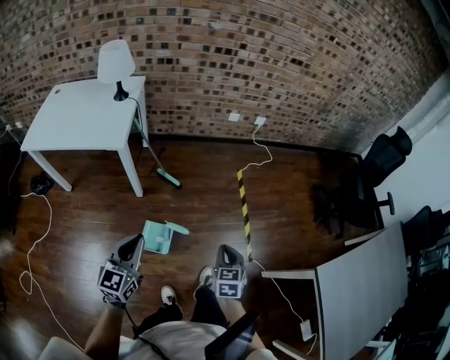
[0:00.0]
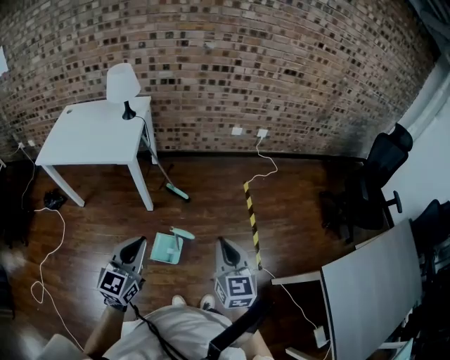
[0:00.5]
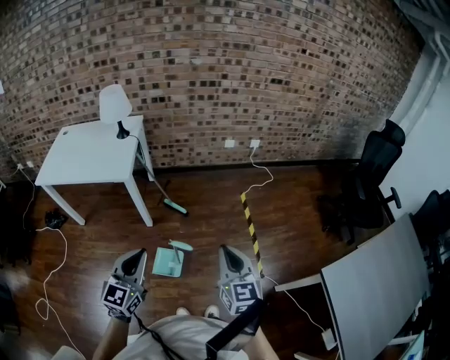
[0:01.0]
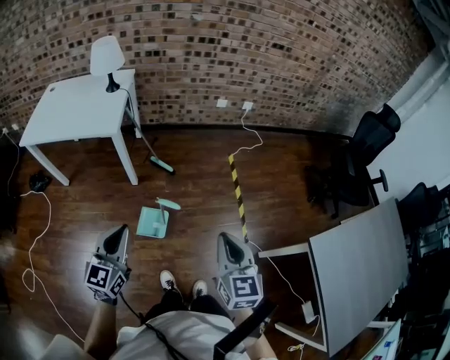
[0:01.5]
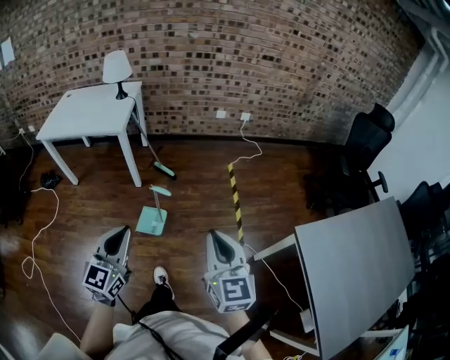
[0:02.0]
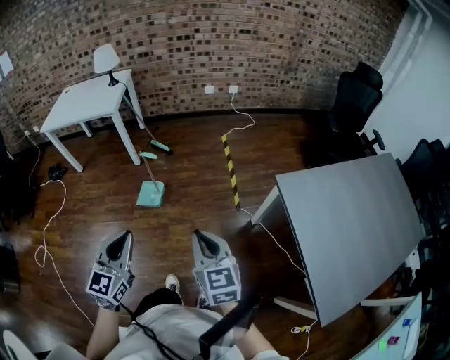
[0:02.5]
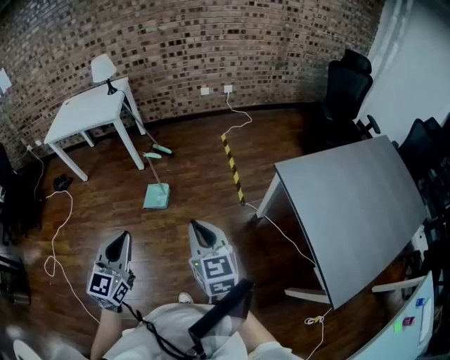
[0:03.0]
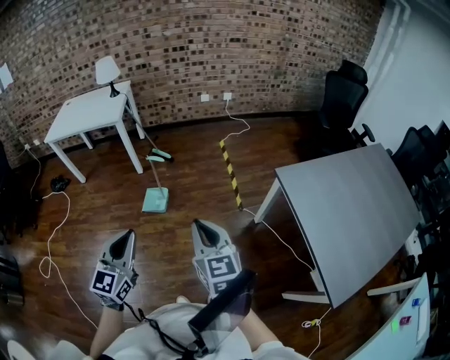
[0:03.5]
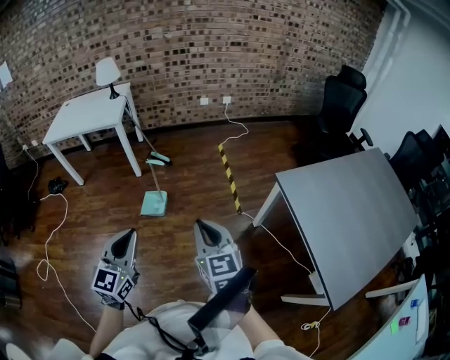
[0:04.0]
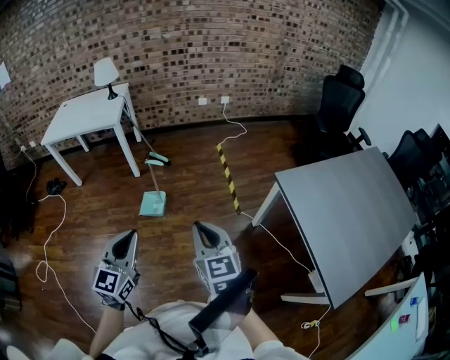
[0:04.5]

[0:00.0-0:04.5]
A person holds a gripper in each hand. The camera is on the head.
0:00.0 to 0:02.0: The right gripper shifts roughly 35 cm backward and upward, and tips its fingers upward by approximately 30 degrees, while the left gripper moves backward and to the right, approximately 25 cm.
0:02.0 to 0:04.5: Both grippers move backward, some 25 cm.

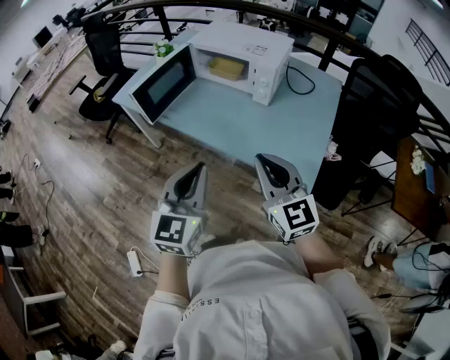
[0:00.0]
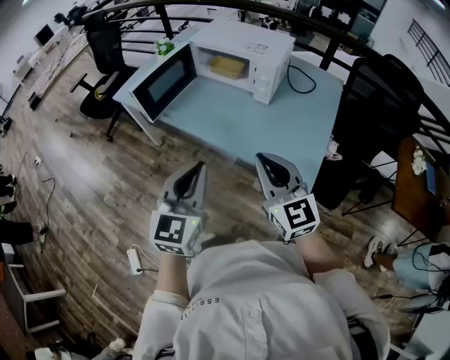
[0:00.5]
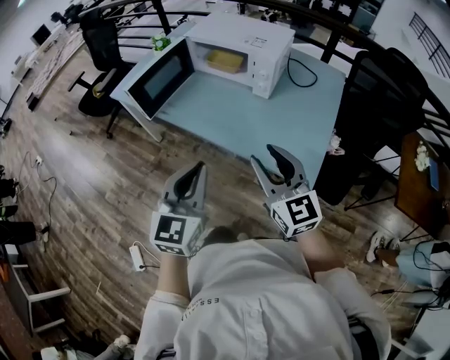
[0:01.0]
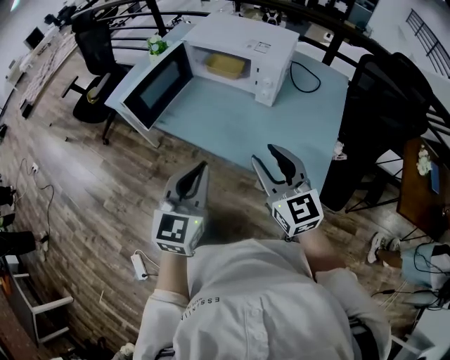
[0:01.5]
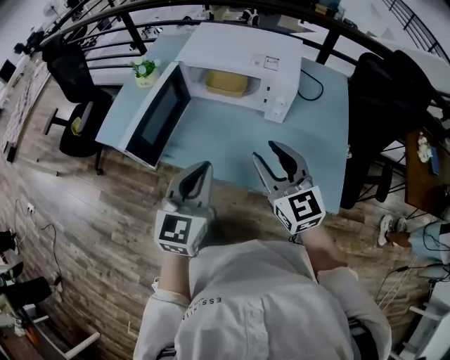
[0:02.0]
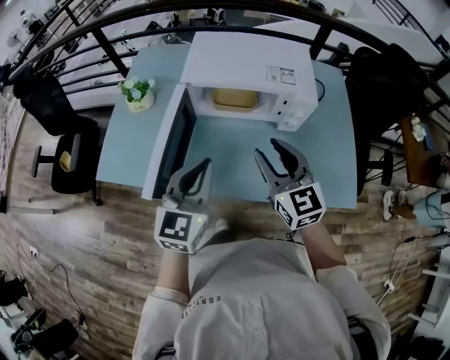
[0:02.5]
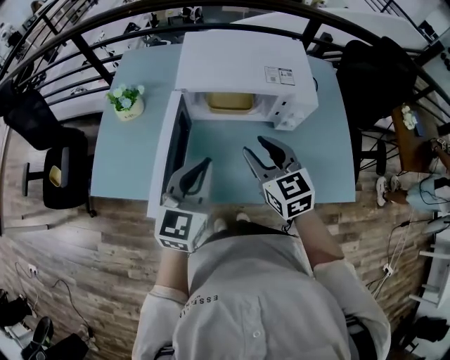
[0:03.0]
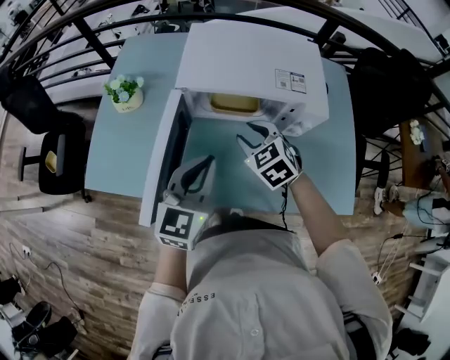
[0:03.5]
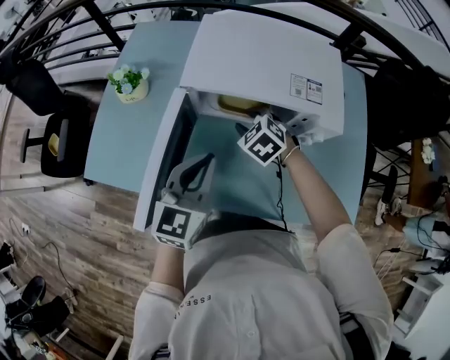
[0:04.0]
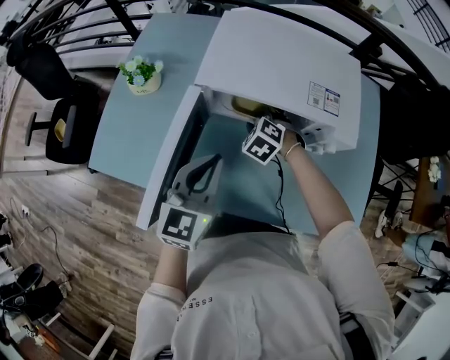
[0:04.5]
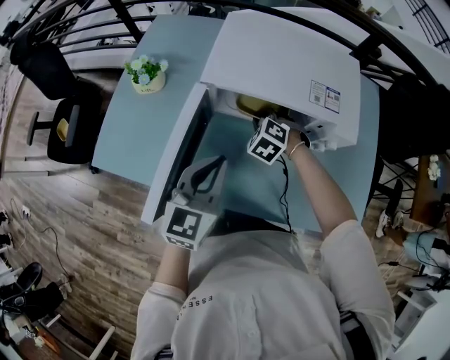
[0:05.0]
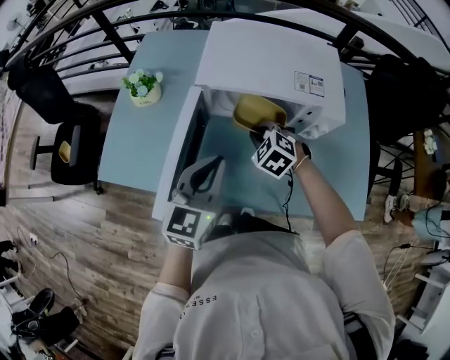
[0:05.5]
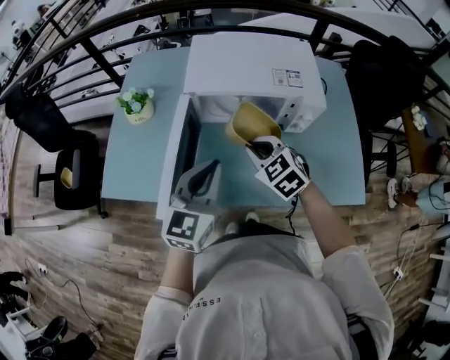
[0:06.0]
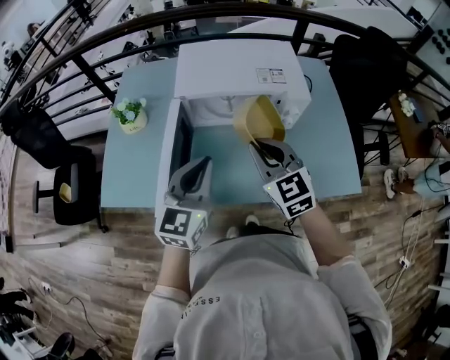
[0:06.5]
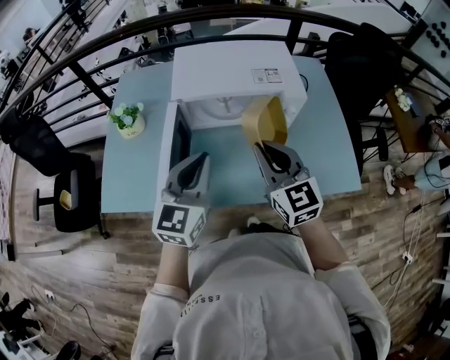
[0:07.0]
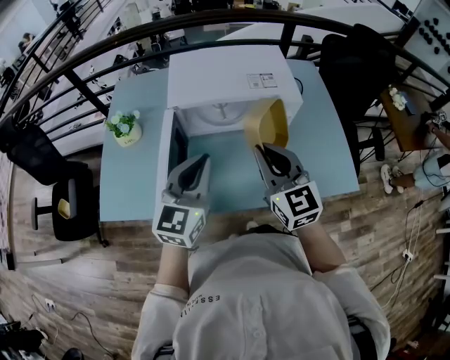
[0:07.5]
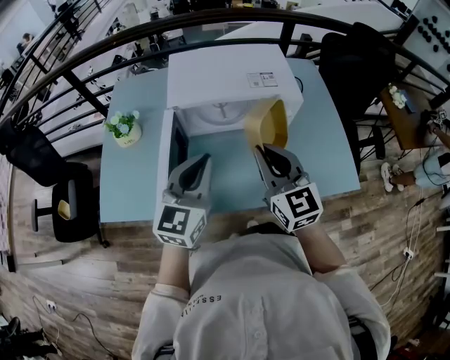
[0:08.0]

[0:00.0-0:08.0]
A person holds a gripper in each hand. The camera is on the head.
0:00.0 to 0:02.0: The two grippers go roughly 20 cm forward. The right gripper opens up.
0:02.0 to 0:04.0: The left gripper shifts approximately 25 cm forward and to the left. Meanwhile the right gripper is displaced forward, downward and to the left by approximately 35 cm, and points its fingers about 50 degrees further downward.
0:04.0 to 0:06.0: The right gripper moves backward and upward, roughly 15 cm, and closes its fingers. Meanwhile the left gripper goes roughly 5 cm backward.
0:06.0 to 0:08.0: The right gripper goes about 15 cm upward, to the right and backward, and tilts its fingers about 30 degrees upward.

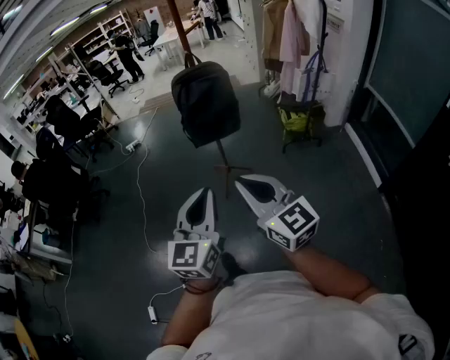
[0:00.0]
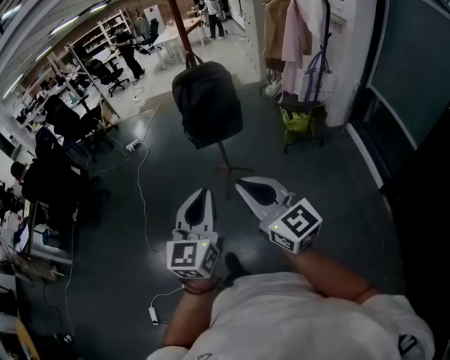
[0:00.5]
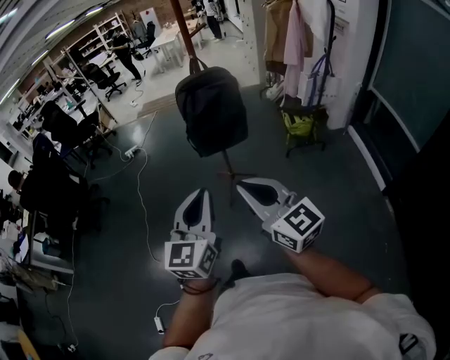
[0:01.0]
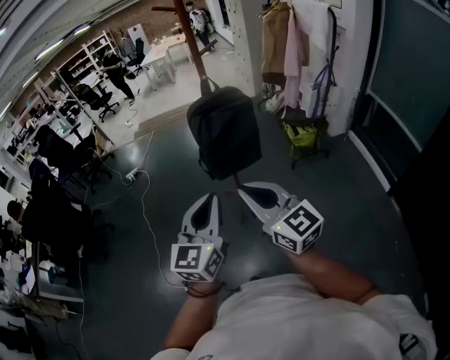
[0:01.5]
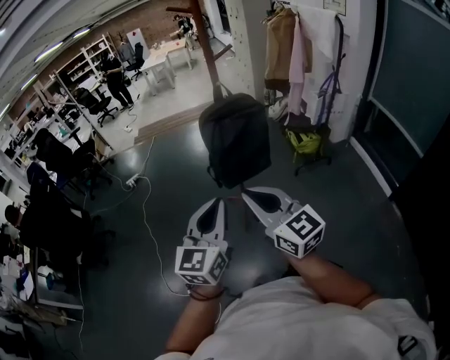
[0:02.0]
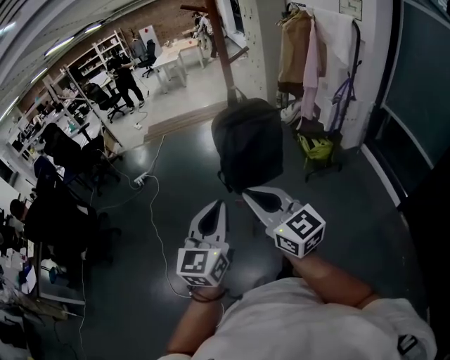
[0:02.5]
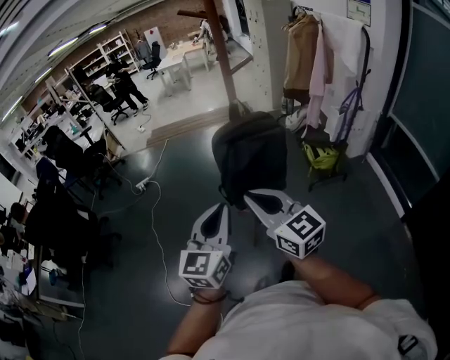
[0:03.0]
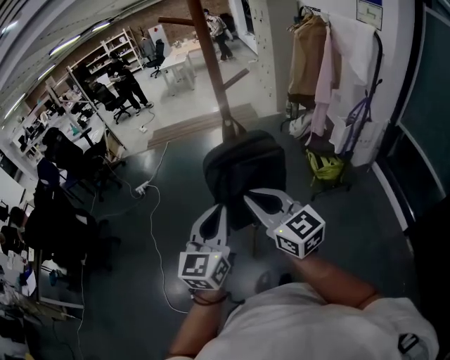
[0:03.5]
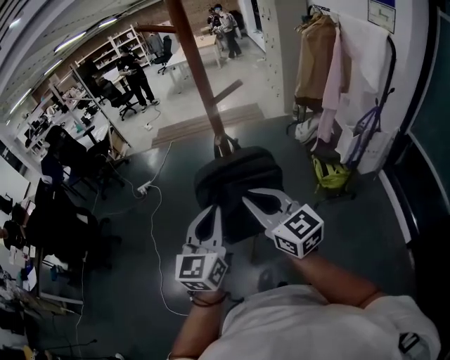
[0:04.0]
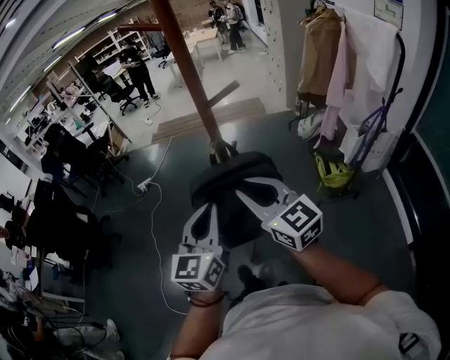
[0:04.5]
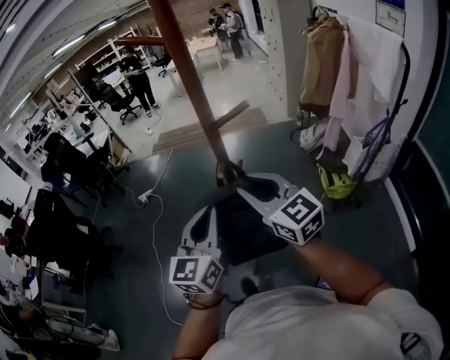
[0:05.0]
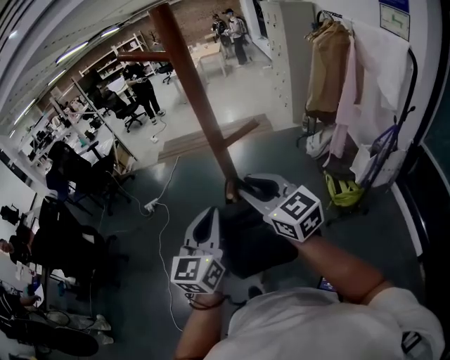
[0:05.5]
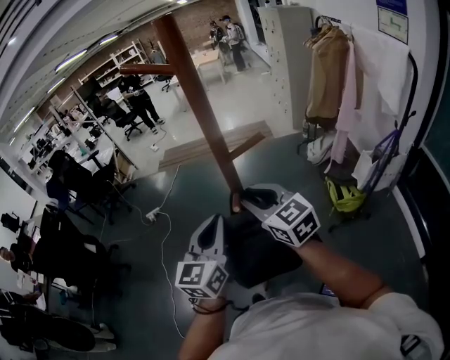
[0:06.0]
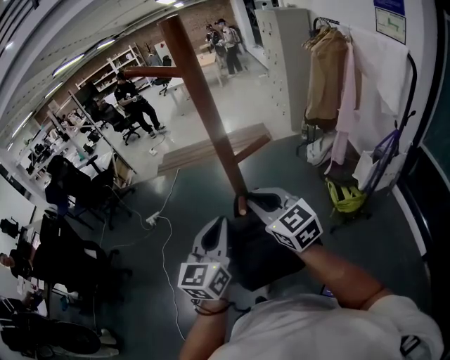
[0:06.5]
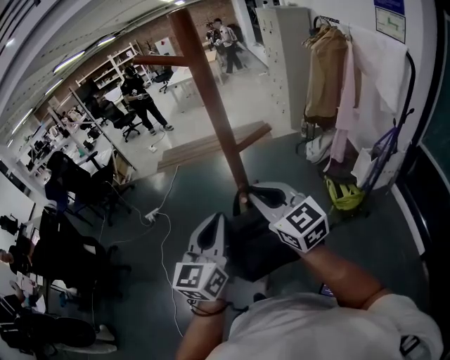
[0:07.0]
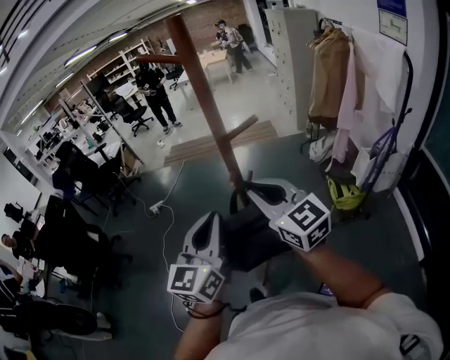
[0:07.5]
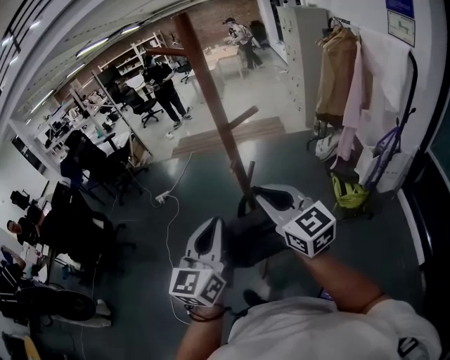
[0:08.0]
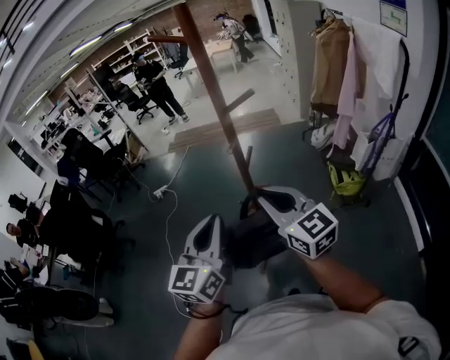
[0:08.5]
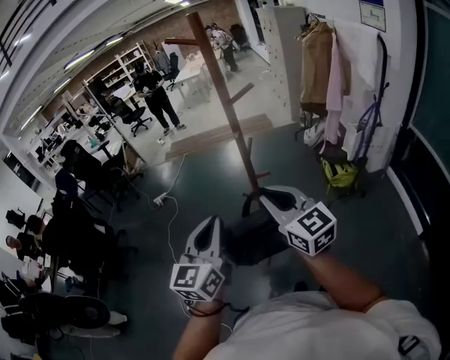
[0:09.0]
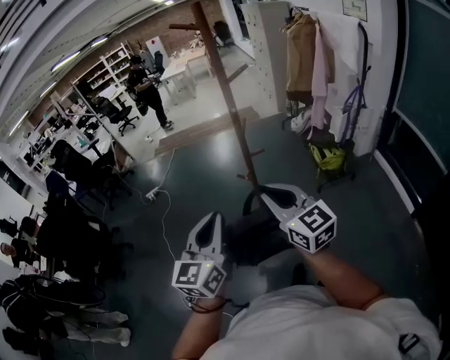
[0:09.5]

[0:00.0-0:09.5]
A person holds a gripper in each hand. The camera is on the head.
0:00.0 to 0:02.0: The two grippers go roughly 30 cm forward and to the left.
0:02.0 to 0:04.0: The grippers both shift forward and to the right by roughly 35 cm.
0:04.0 to 0:05.5: Both grippers travel together forward, some 15 cm.
0:05.5 to 0:07.5: The grippers both shift backward by roughly 5 cm.
0:07.5 to 0:09.5: The left gripper goes about 30 cm backward and to the left. The right gripper moves backward, about 30 cm.

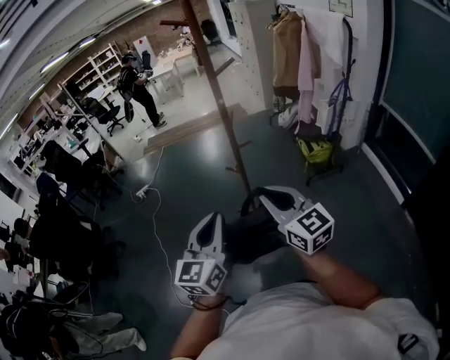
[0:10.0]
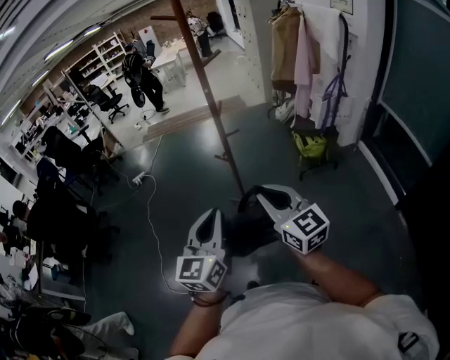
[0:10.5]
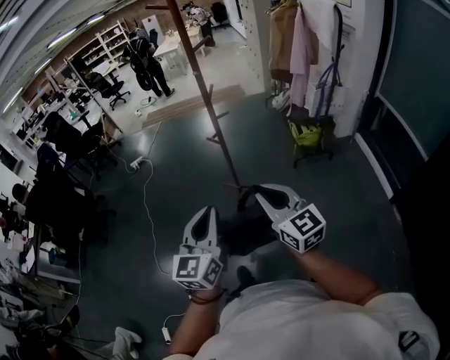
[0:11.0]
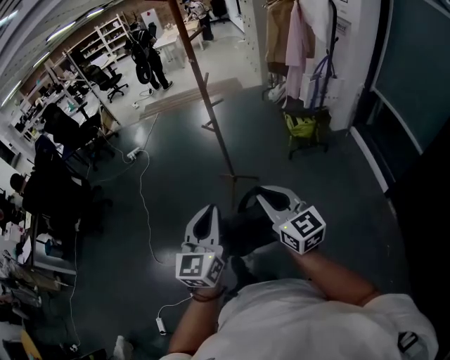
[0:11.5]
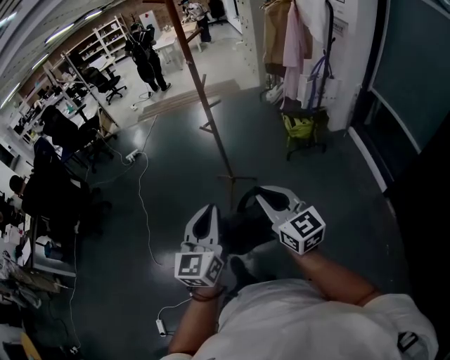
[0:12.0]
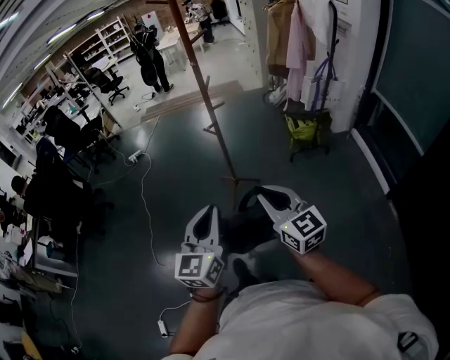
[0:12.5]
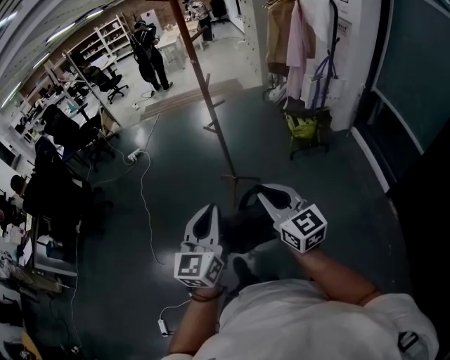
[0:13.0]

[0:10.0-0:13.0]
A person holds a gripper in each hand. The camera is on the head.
0:10.0 to 0:11.5: Both grippers move backward and to the right, approximately 25 cm.
0:11.5 to 0:13.0: There are only small adjustments of the grippers.

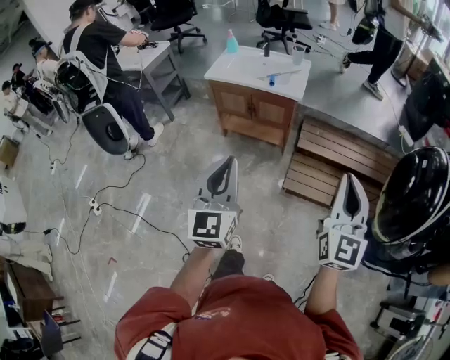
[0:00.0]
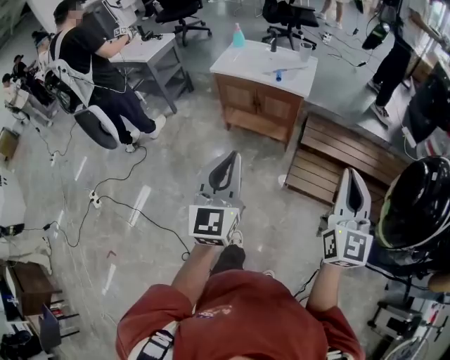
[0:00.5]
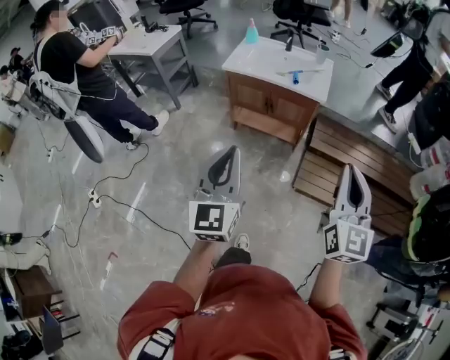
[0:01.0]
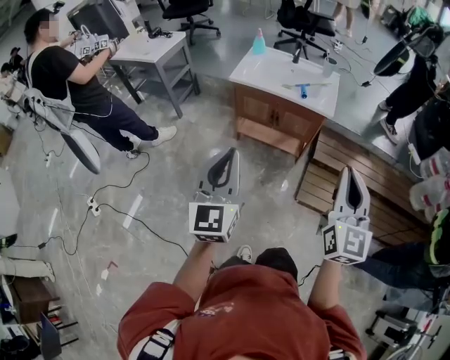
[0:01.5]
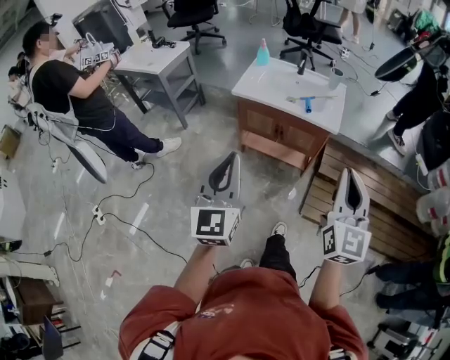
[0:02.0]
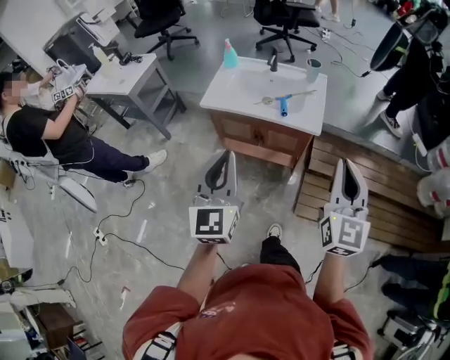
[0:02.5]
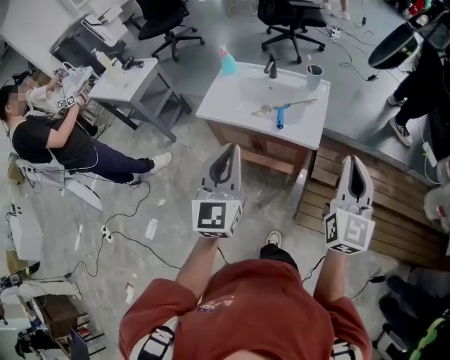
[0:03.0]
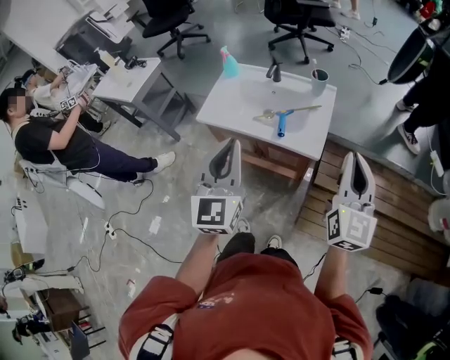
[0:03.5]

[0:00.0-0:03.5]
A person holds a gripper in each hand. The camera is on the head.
0:00.0 to 0:02.0: The right gripper shifts approximately 30 cm forward and to the left; the left gripper is displaced to the left and forward by some 30 cm.
0:02.0 to 0:03.5: The two grippers travel together, forward and to the right, approximately 40 cm.
